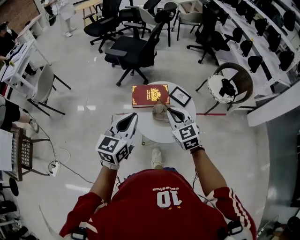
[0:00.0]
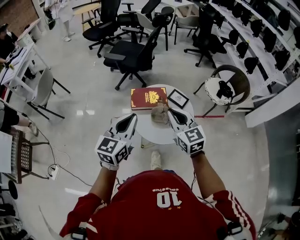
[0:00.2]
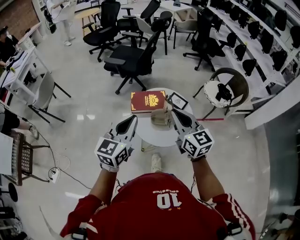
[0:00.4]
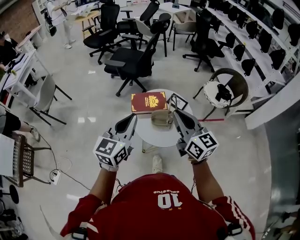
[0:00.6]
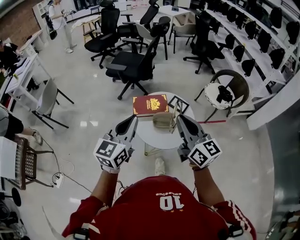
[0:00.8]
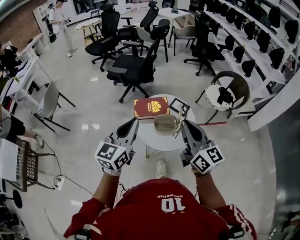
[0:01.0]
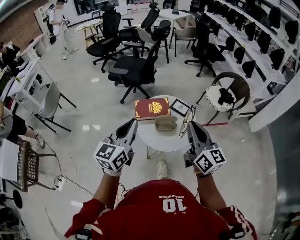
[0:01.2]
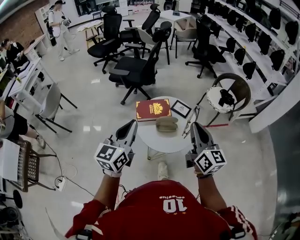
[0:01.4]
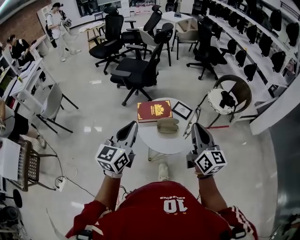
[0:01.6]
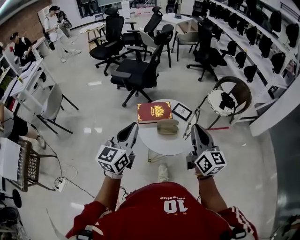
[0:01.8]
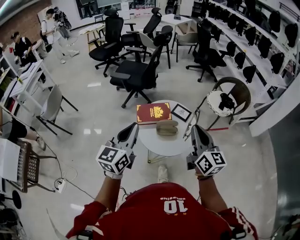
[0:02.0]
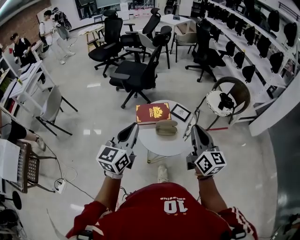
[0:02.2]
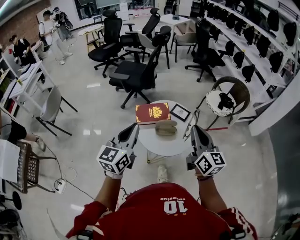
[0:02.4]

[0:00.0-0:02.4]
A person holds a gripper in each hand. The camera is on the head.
0:00.0 to 0:01.2: The right gripper heads upward, backward and to the right, covering approximately 20 cm, and swivels approximately 40 degrees; the left gripper shifts approximately 5 cm upward.
0:01.2 to 0:02.4: There are only small adjustments of the grippers.

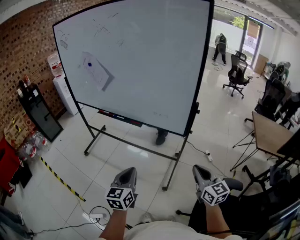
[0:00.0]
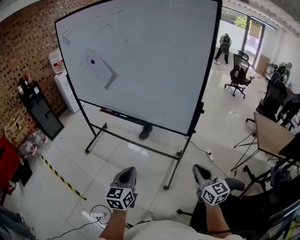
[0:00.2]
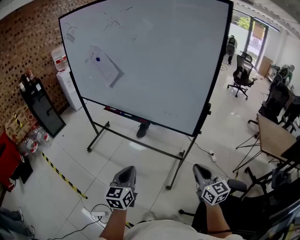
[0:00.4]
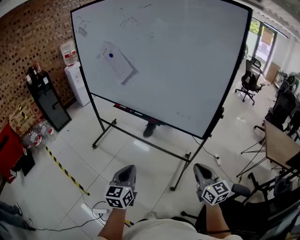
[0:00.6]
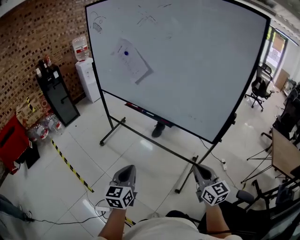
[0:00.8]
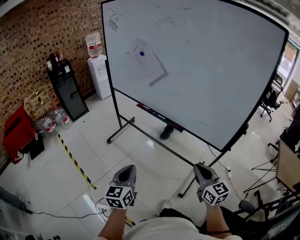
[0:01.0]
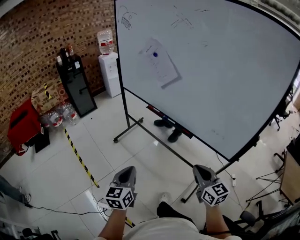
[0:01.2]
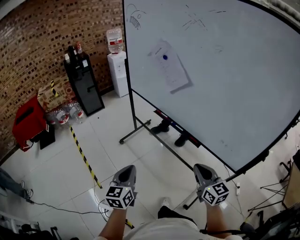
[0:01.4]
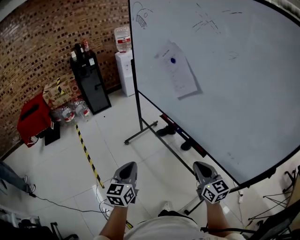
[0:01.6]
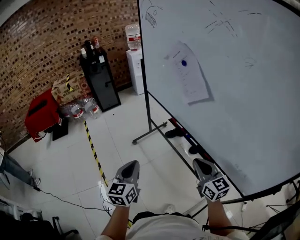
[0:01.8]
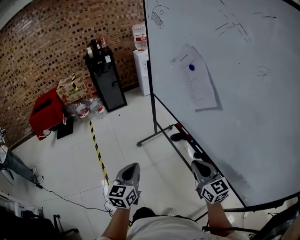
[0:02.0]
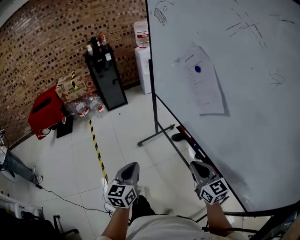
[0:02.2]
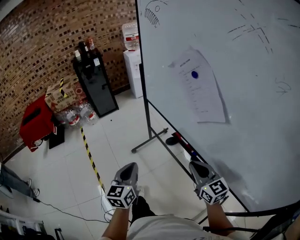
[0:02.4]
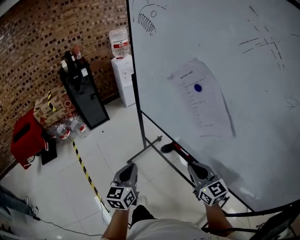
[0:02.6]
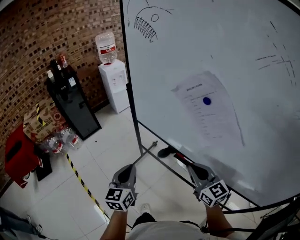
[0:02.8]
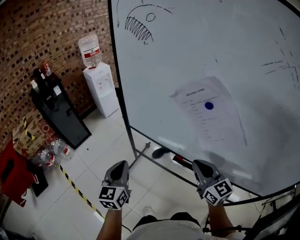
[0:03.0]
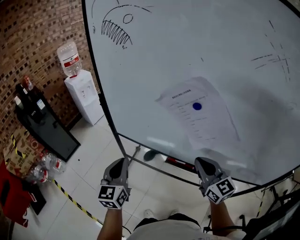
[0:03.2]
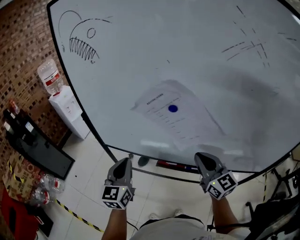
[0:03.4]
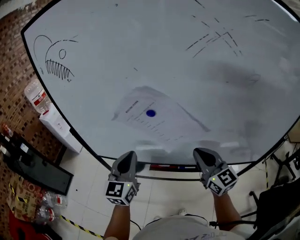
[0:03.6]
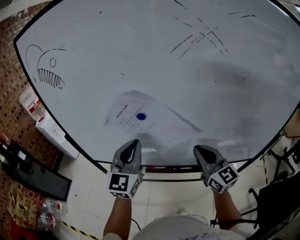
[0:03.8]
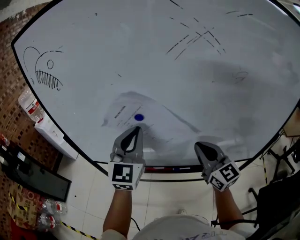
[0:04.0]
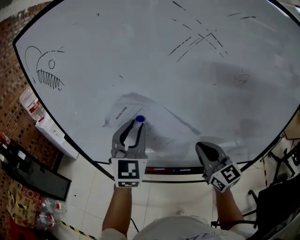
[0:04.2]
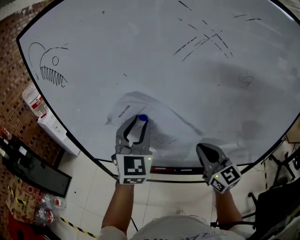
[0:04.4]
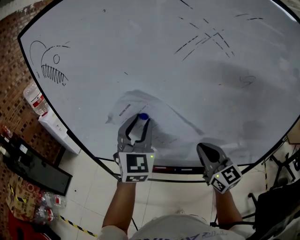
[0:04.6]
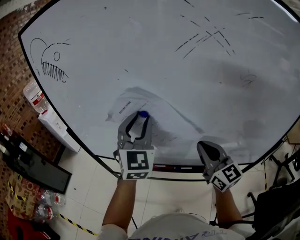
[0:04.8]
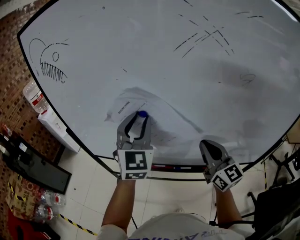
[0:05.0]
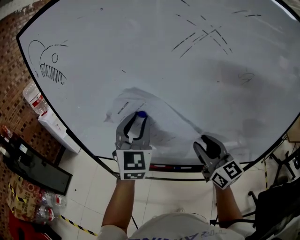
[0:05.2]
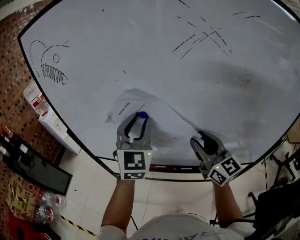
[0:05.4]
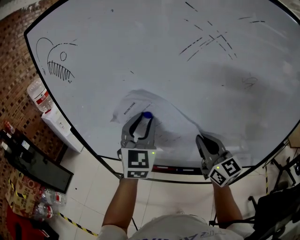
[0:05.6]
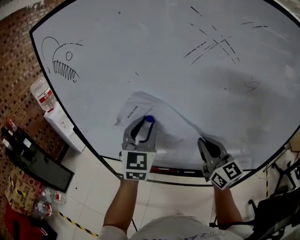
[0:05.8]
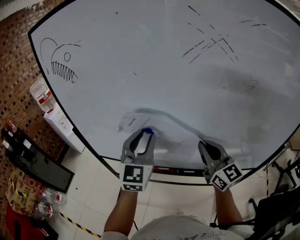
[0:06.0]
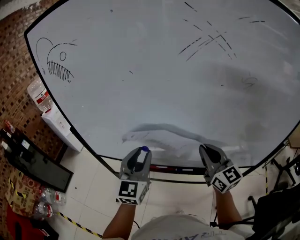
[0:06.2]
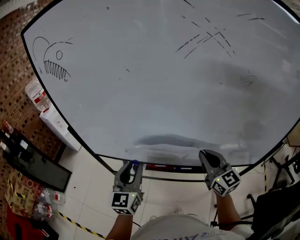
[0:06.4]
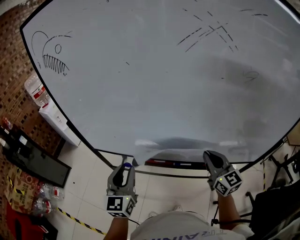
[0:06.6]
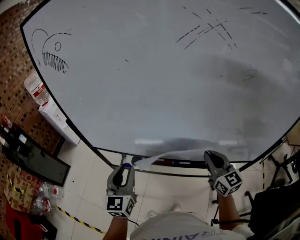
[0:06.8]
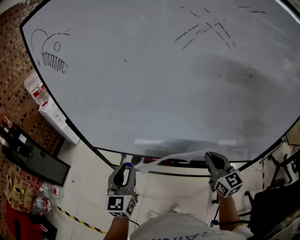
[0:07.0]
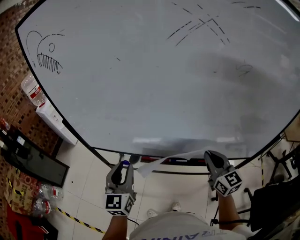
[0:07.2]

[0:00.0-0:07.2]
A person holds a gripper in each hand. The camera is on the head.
0:00.0 to 0:01.4: The left gripper ends up about 30 cm from where it was, and swivels roughly 30 degrees. The right gripper moves some 35 cm, and turns by about 30 degrees.
0:01.4 to 0:02.8: The pair of grippers is taken forward, about 40 cm.
0:02.8 to 0:04.4: The left gripper shifts by about 40 cm, rotates roughly 50 degrees, and opens, while the right gripper changes place by about 20 cm, and changes its angle by approximately 40 degrees.
0:04.4 to 0:05.8: The right gripper opens, then closes again.
0:05.8 to 0:07.2: The right gripper shifts roughly 15 cm downward, to the right and backward. The left gripper heads downward, backward and to the left, covering about 20 cm, and changes its angle by approximately 20 degrees.

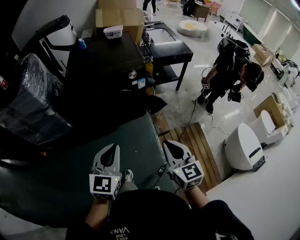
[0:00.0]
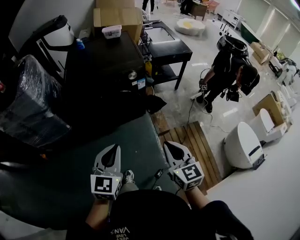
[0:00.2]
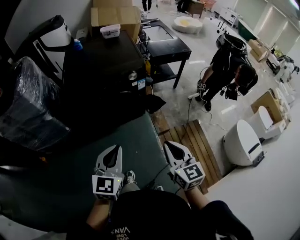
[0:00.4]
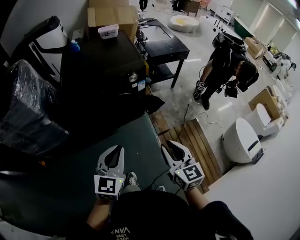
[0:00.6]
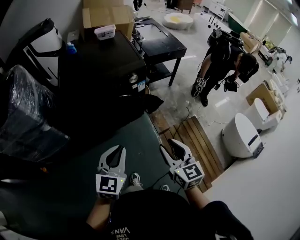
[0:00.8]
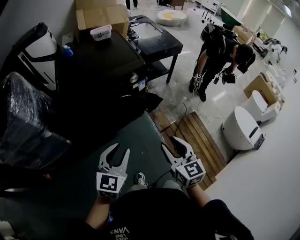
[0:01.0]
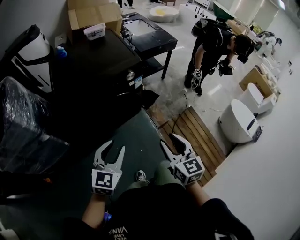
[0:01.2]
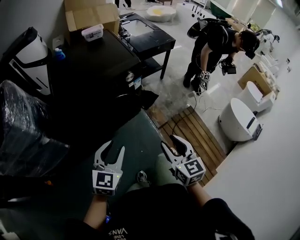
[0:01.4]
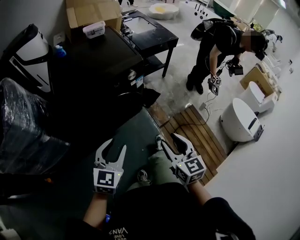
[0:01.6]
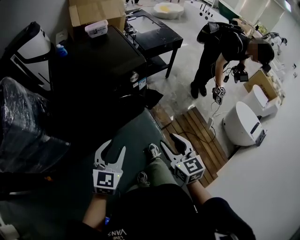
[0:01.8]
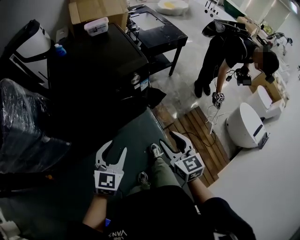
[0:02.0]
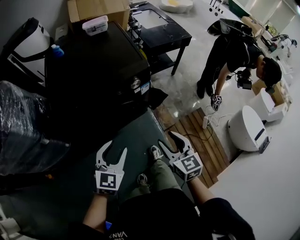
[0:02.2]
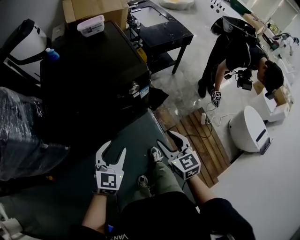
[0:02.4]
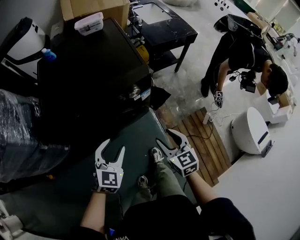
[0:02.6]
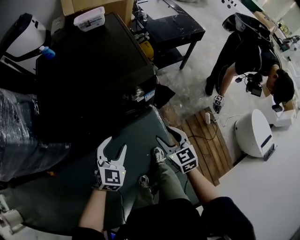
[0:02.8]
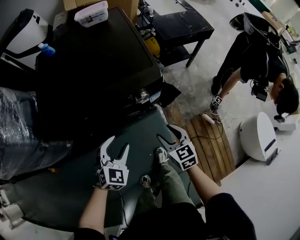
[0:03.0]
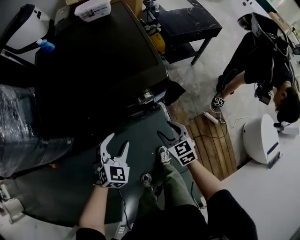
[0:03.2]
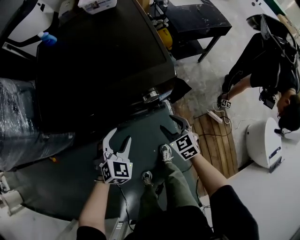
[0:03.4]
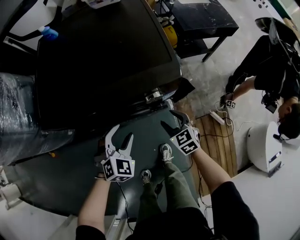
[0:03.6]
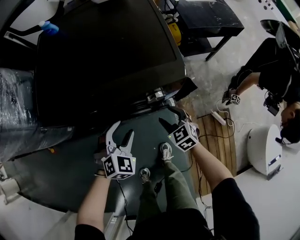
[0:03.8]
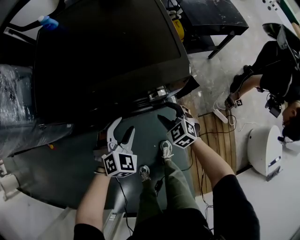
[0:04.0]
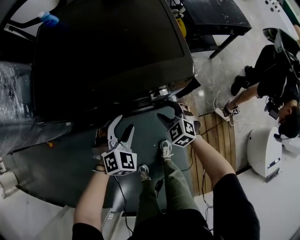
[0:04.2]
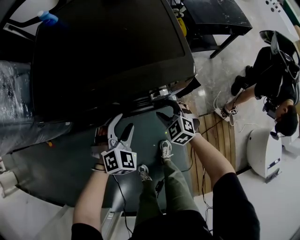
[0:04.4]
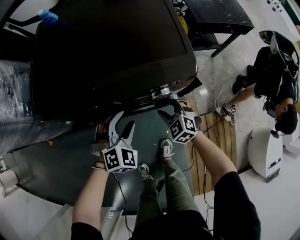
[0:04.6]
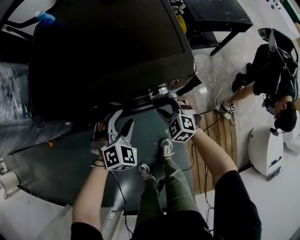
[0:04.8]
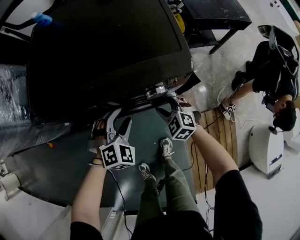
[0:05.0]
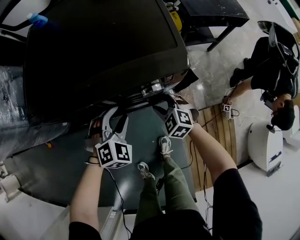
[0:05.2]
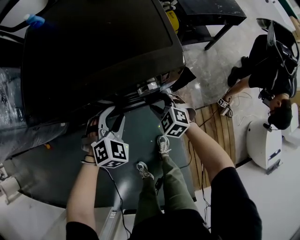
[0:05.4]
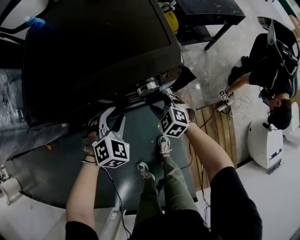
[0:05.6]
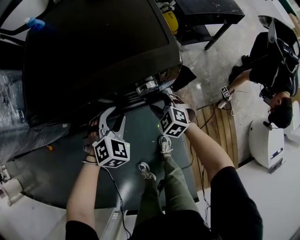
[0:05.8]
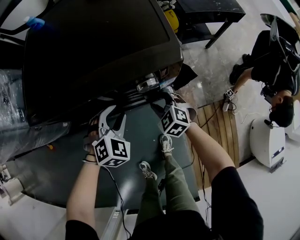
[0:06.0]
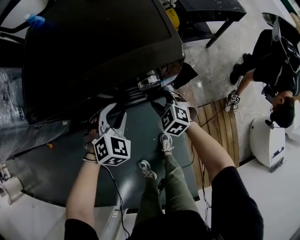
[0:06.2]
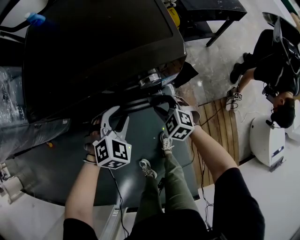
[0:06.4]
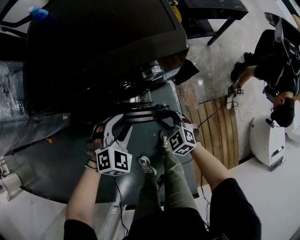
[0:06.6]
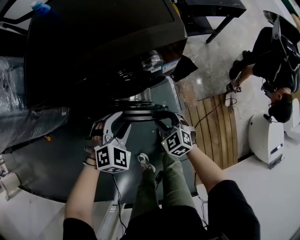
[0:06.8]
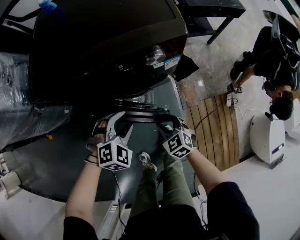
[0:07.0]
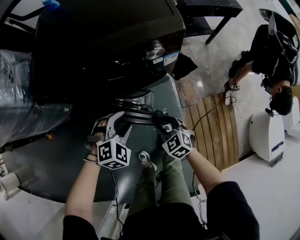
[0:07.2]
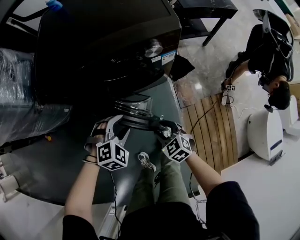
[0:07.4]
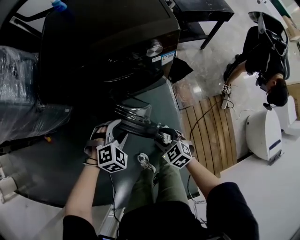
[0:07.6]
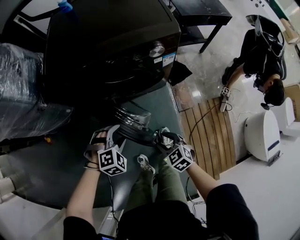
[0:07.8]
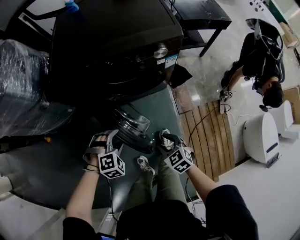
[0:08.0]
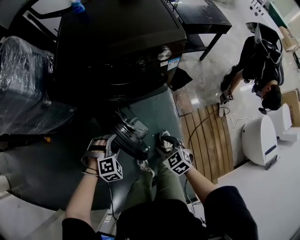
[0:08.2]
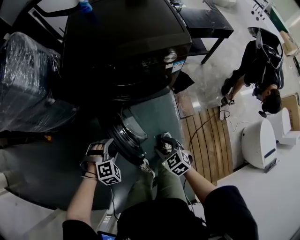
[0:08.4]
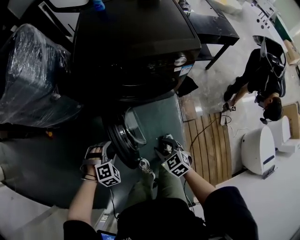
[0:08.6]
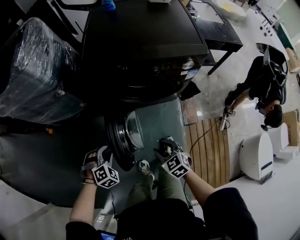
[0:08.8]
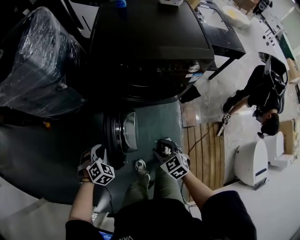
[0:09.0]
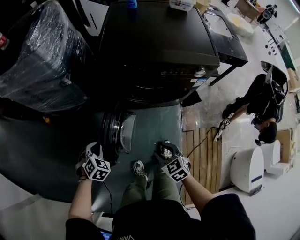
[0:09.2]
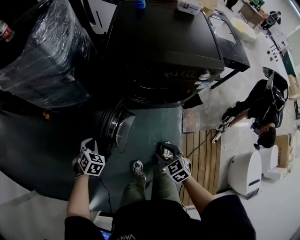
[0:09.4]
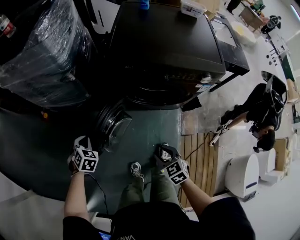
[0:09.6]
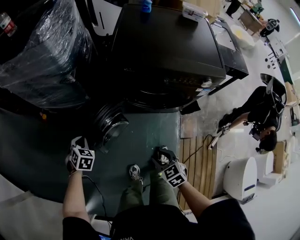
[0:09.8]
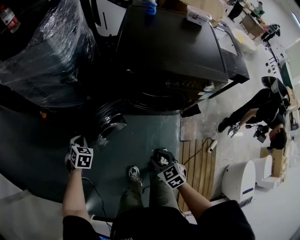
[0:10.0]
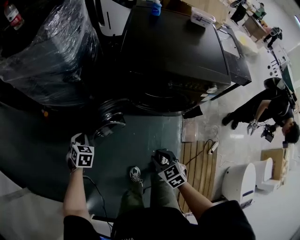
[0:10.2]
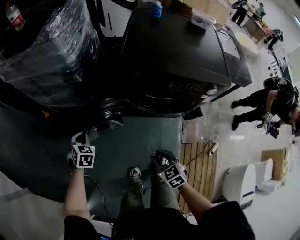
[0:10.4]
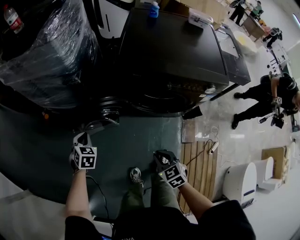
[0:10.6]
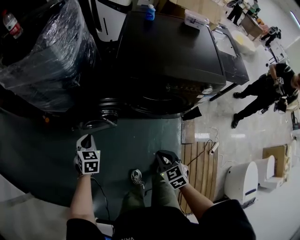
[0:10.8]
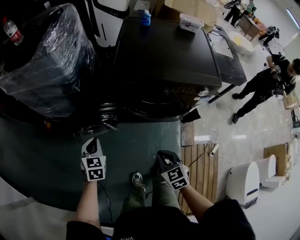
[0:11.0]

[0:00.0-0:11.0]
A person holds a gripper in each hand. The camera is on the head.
0:00.0 to 0:01.6: The right gripper goes about 15 cm to the left and forward, and opens its fingers. Meanwhile the left gripper goes about 20 cm forward, to the left and downward, turns by roughly 20 degrees, and opens.
0:01.6 to 0:03.2: The two grippers go about 35 cm forward and downward. The left gripper swivels about 30 degrees. Meanwhile the right gripper turns by approximately 30 degrees.
0:03.2 to 0:04.8: The left gripper heads downward and forward, covering roughly 10 cm, while the right gripper moves forward and downward, about 15 cm, and changes its angle by approximately 40 degrees.
0:04.8 to 0:06.2: The grippers move only a little.
0:06.2 to 0:07.8: The right gripper is displaced backward by some 30 cm. The left gripper moves backward and to the left, roughly 25 cm.
0:07.8 to 0:09.4: The left gripper shifts some 30 cm to the left, twists about 50 degrees counterclockwise, seen from behind, and closes; the right gripper goes roughly 15 cm to the left and upward.
0:09.4 to 0:11.0: The two grippers go approximately 5 cm upward. The left gripper swivels roughly 30 degrees. Meanwhile the right gripper closes.

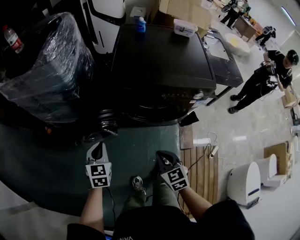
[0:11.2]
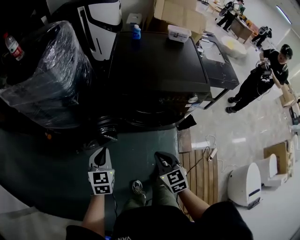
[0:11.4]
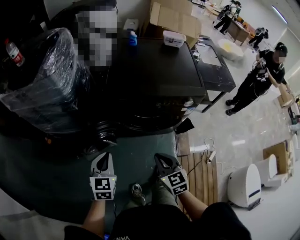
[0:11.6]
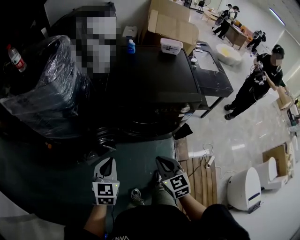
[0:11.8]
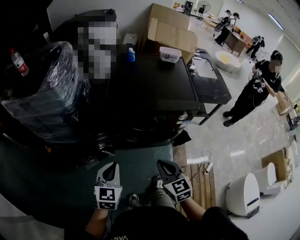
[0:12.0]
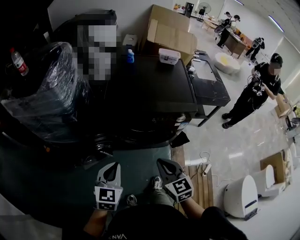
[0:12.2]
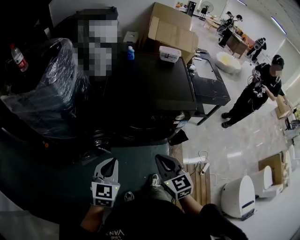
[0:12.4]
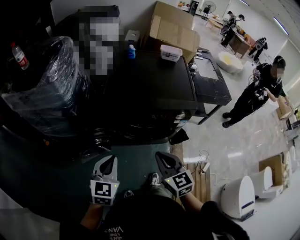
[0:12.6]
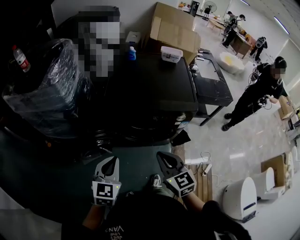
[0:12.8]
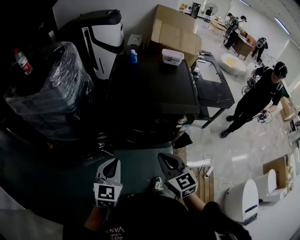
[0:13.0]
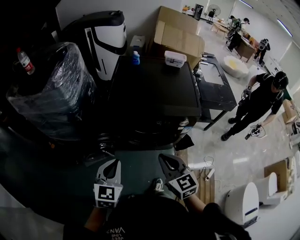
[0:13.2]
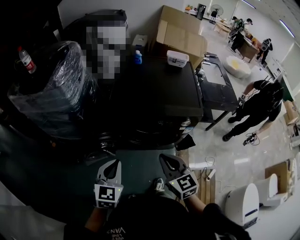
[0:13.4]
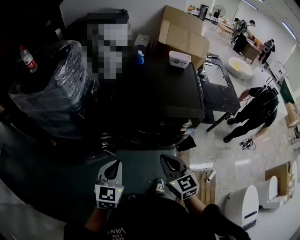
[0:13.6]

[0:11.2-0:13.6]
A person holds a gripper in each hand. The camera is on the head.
0:11.2 to 0:12.4: The right gripper is displaced upward by about 15 cm. Meanwhile the left gripper is displaced upward and to the right by about 20 cm.
0:12.4 to 0:13.6: The grippers move only a little.
